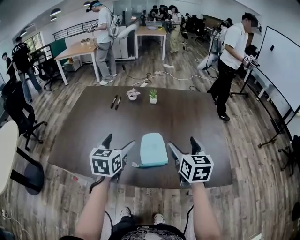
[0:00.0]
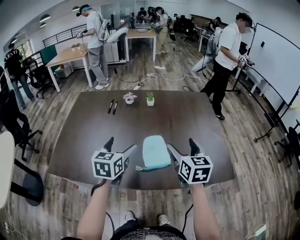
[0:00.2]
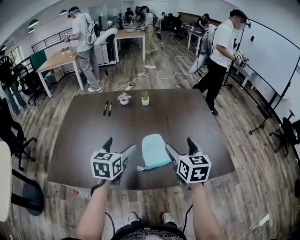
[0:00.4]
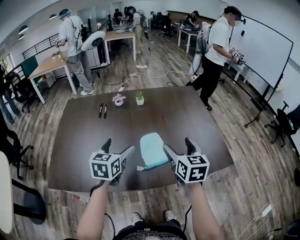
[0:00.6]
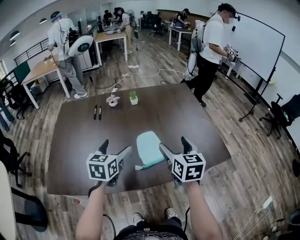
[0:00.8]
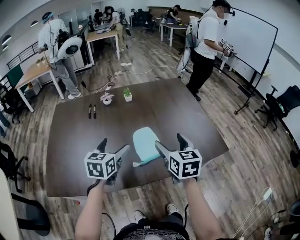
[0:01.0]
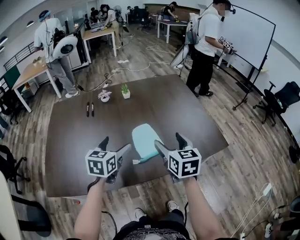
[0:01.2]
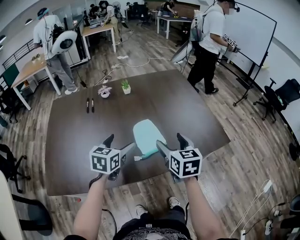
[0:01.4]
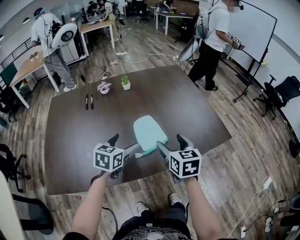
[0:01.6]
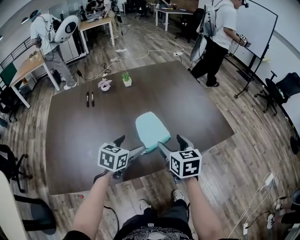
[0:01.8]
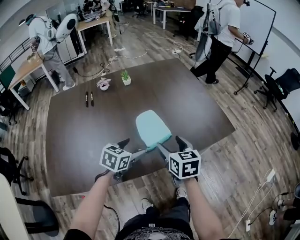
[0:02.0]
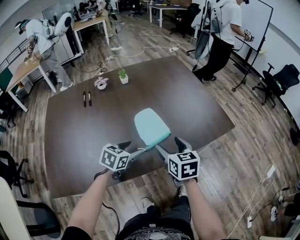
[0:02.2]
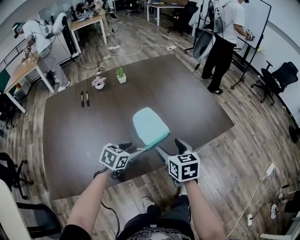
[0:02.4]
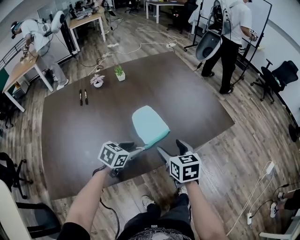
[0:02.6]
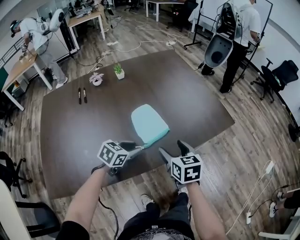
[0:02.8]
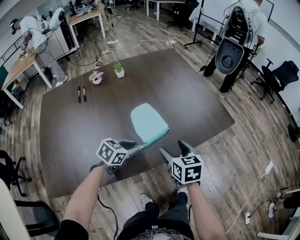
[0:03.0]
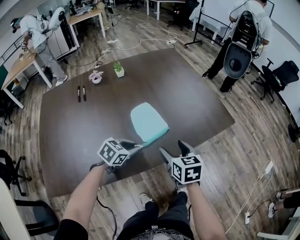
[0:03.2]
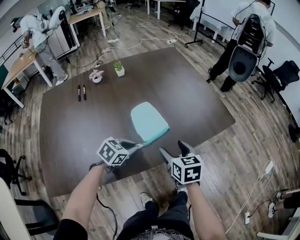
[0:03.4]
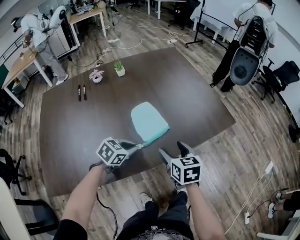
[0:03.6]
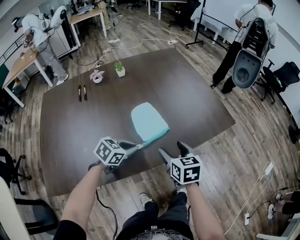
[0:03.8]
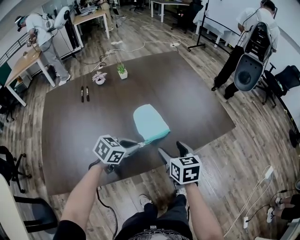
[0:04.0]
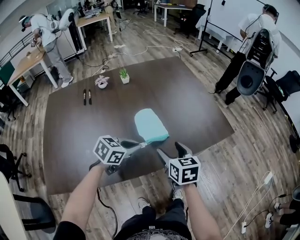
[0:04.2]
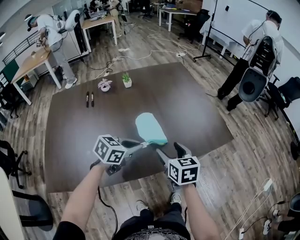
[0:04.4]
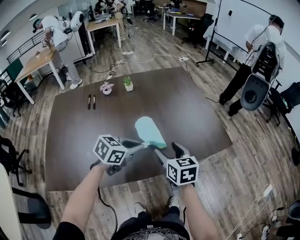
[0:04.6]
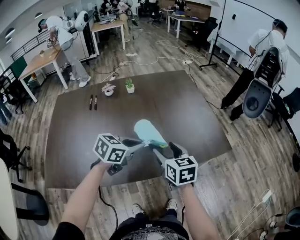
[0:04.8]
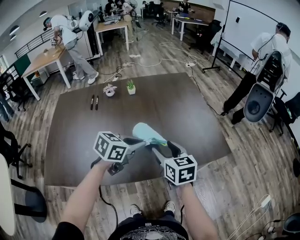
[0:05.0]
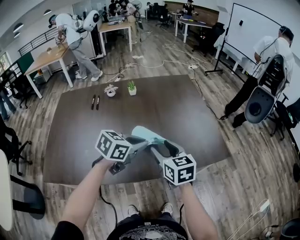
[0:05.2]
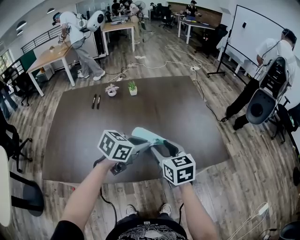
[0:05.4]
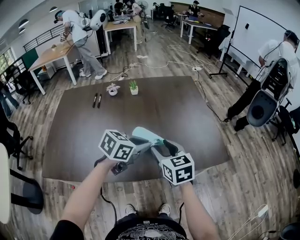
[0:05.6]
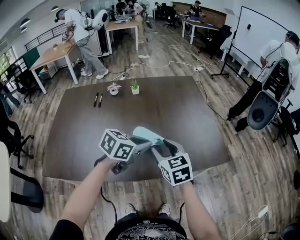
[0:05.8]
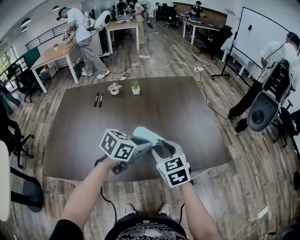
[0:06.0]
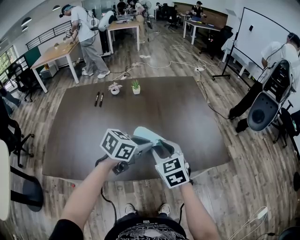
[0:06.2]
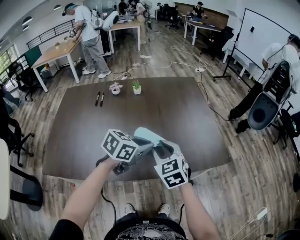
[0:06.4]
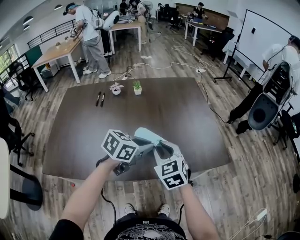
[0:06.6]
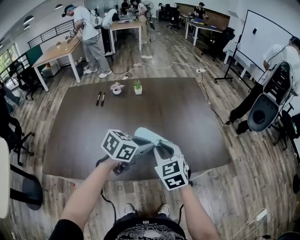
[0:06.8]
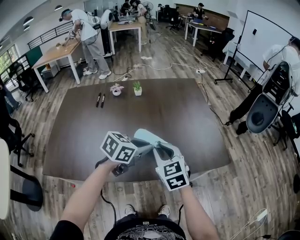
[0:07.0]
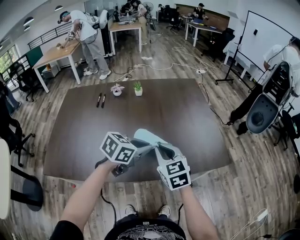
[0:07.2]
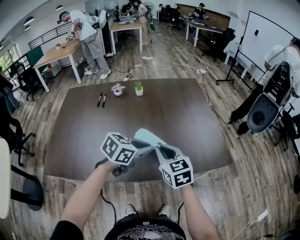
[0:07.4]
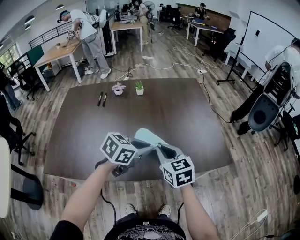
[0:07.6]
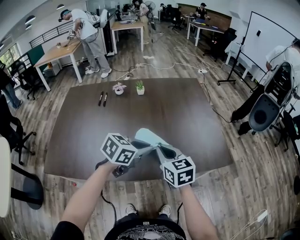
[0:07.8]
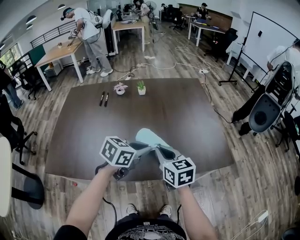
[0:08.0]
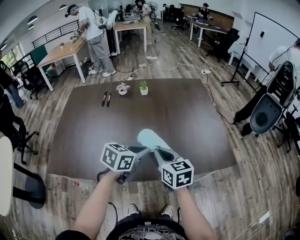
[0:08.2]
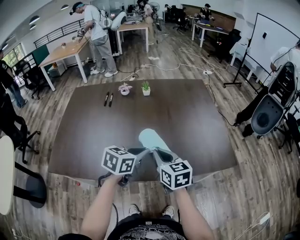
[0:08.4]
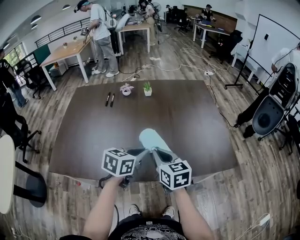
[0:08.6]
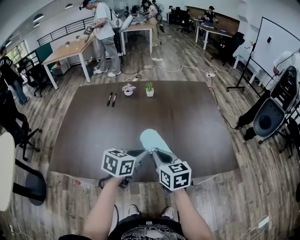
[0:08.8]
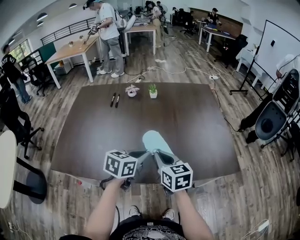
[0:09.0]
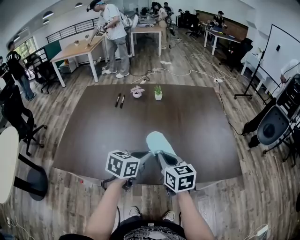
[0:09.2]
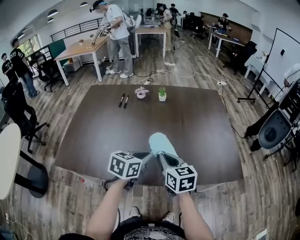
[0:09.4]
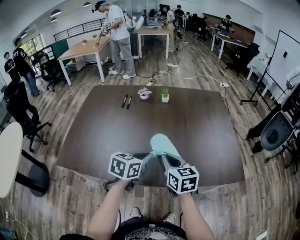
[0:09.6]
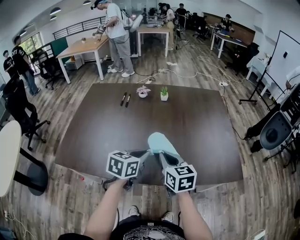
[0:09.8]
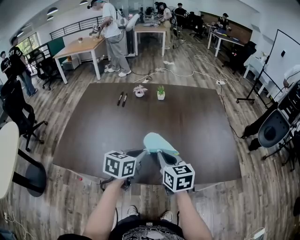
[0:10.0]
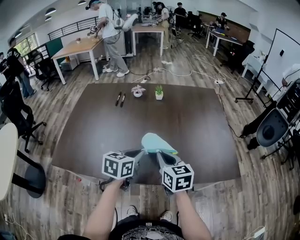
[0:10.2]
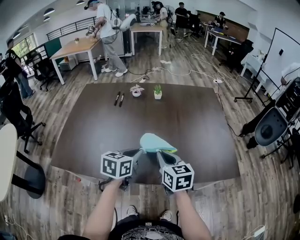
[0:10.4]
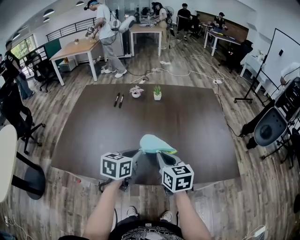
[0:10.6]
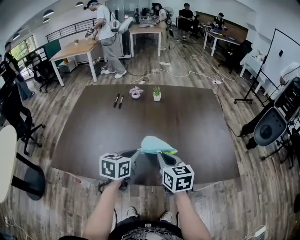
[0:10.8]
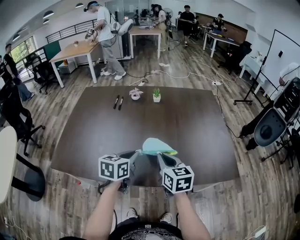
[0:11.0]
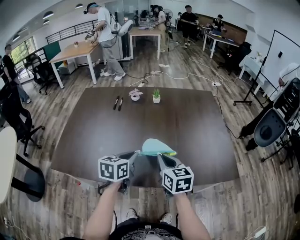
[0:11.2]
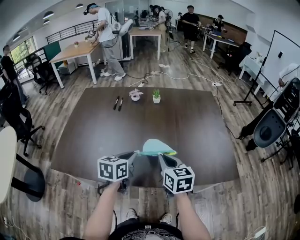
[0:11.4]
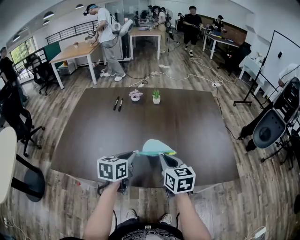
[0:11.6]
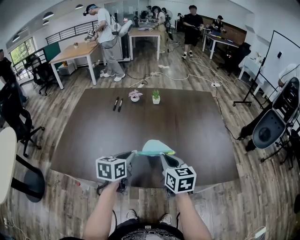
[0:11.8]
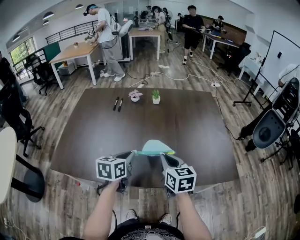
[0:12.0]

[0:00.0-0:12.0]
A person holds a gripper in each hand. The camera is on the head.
0:00.0 to 0:01.6: The right gripper changes place by about 10 cm, while the left gripper shifts some 10 cm downward, and rotates roughly 40 degrees.
0:01.6 to 0:03.0: Both grippers move downward, some 10 cm. The left gripper rotates about 30 degrees, and closes its fingers.
0:03.0 to 0:04.4: The right gripper changes place by roughly 5 cm, while the left gripper travels upward by about 10 cm.
0:04.4 to 0:06.0: The right gripper moves about 5 cm, and rotates some 30 degrees; the left gripper goes some 10 cm upward and to the right.
0:06.0 to 0:07.6: The right gripper closes its fingers.
0:07.6 to 0:09.0: The right gripper moves approximately 5 cm. Meanwhile the left gripper heads to the left, covering some 5 cm, and rotates about 20 degrees.
0:09.0 to 0:10.4: There are only small adjustments of the grippers.
0:10.4 to 0:12.0: The grippers move only a little.

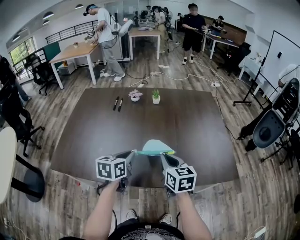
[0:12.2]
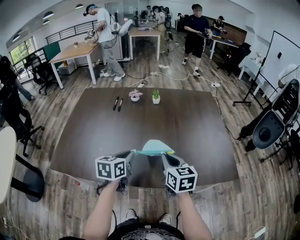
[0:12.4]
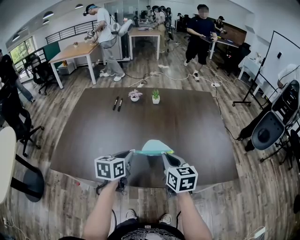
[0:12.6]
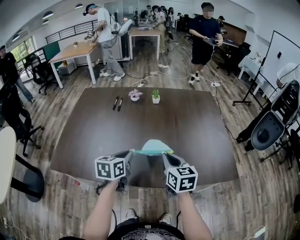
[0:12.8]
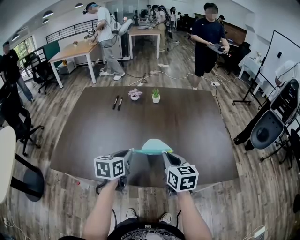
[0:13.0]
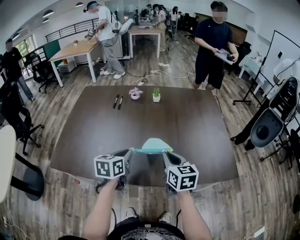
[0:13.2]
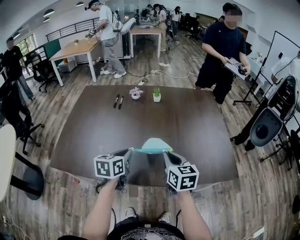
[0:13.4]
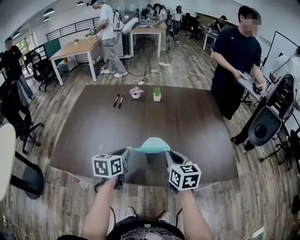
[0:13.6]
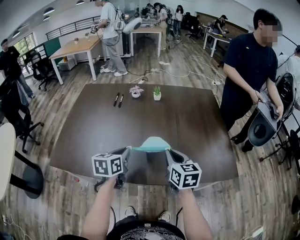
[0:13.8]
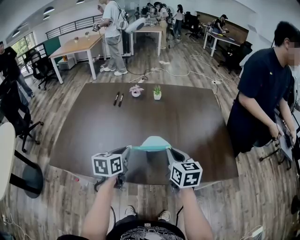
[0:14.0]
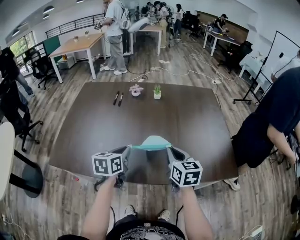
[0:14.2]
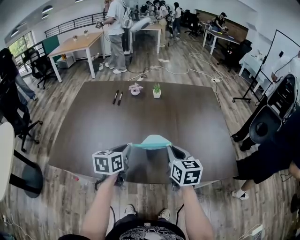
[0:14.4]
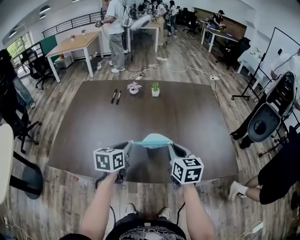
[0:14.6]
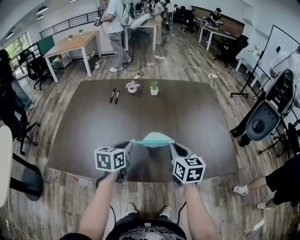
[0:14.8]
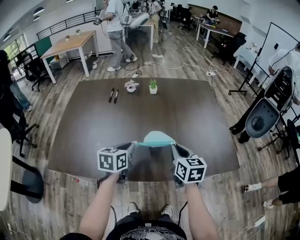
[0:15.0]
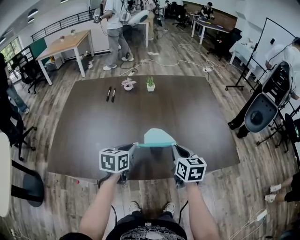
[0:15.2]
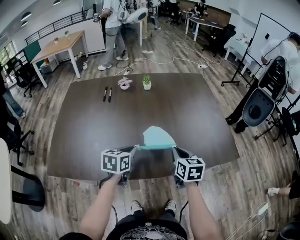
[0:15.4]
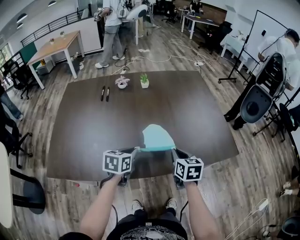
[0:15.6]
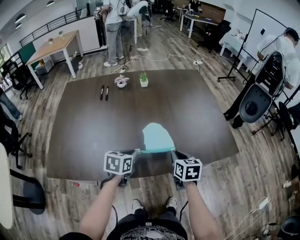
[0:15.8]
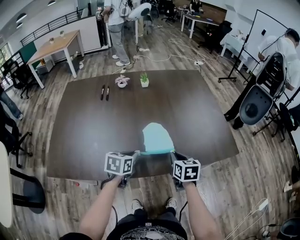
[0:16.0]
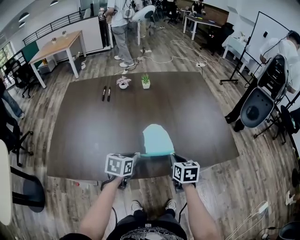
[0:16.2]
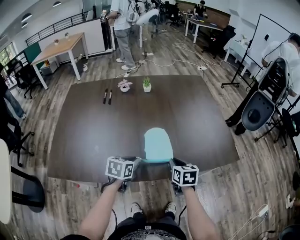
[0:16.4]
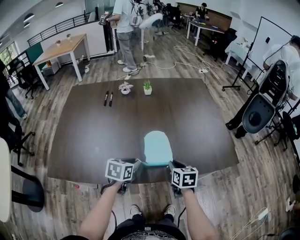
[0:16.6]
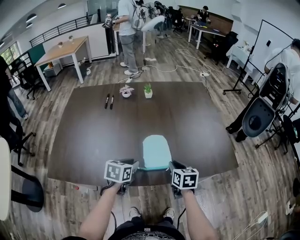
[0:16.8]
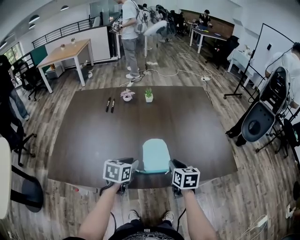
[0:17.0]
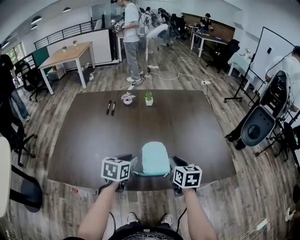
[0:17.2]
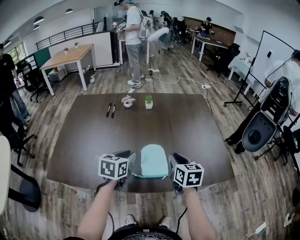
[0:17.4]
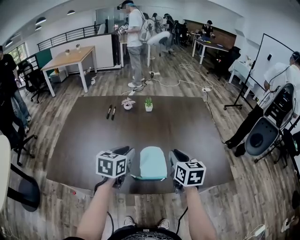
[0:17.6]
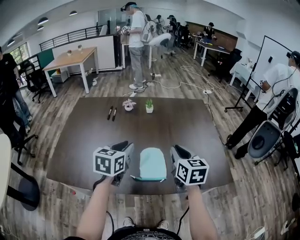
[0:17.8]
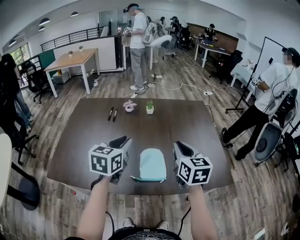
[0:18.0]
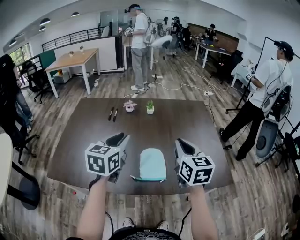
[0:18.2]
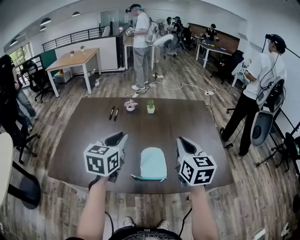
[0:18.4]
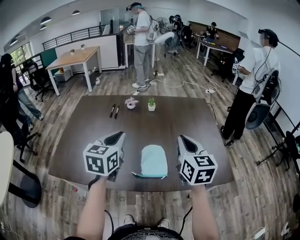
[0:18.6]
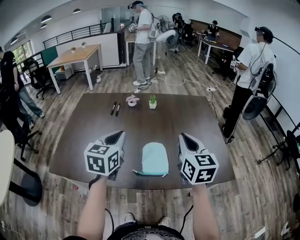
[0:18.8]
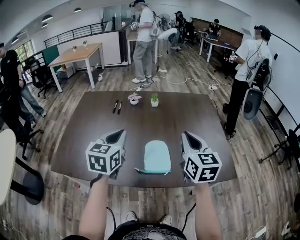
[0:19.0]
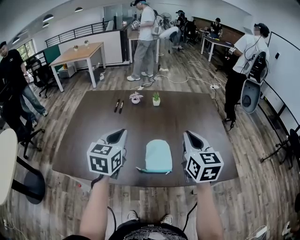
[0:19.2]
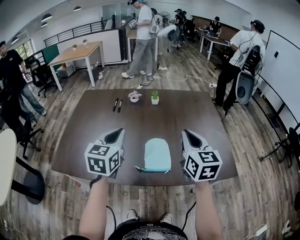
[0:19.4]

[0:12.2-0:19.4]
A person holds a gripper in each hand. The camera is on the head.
0:12.2 to 0:15.0: There are only small adjustments of the grippers.
0:15.0 to 0:16.6: The grippers both shift downward by some 10 cm.
0:16.6 to 0:18.0: The two grippers go about 25 cm upward. The left gripper rotates about 30 degrees, while the right gripper turns by some 30 degrees.
0:18.0 to 0:19.4: The grippers move only a little.

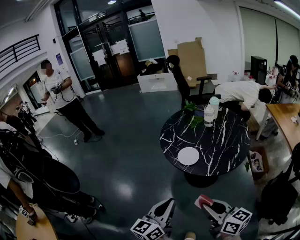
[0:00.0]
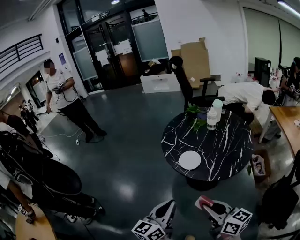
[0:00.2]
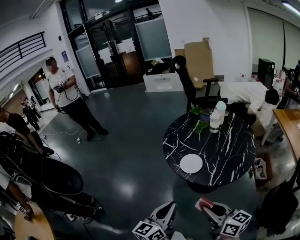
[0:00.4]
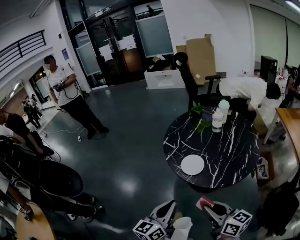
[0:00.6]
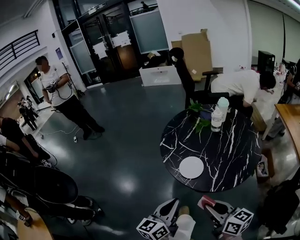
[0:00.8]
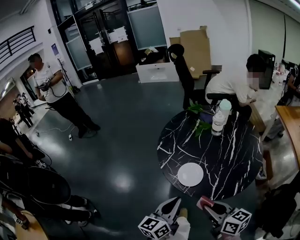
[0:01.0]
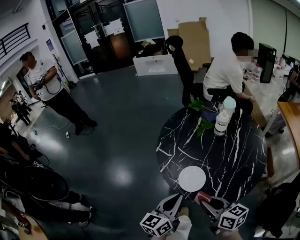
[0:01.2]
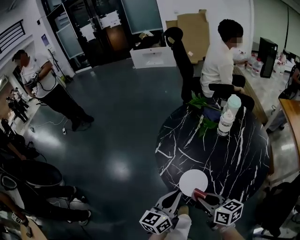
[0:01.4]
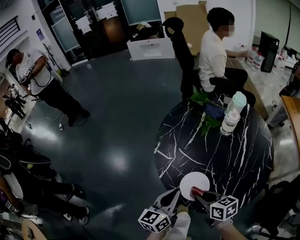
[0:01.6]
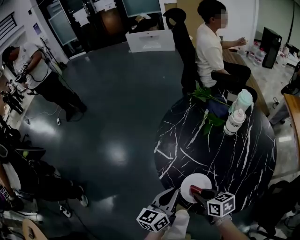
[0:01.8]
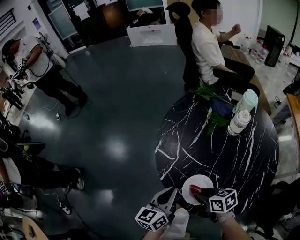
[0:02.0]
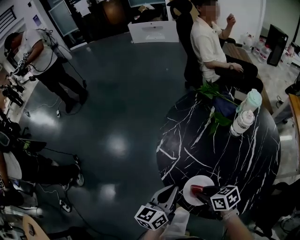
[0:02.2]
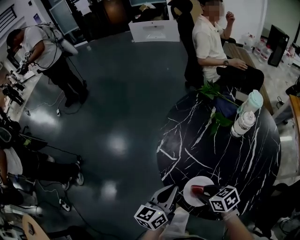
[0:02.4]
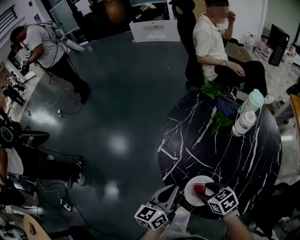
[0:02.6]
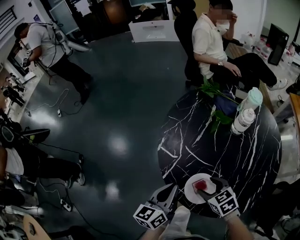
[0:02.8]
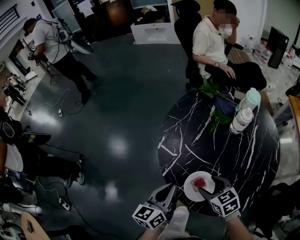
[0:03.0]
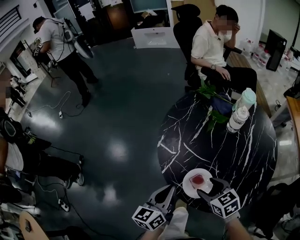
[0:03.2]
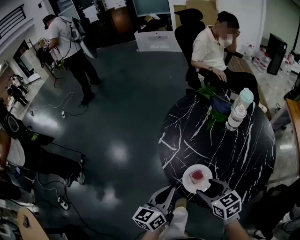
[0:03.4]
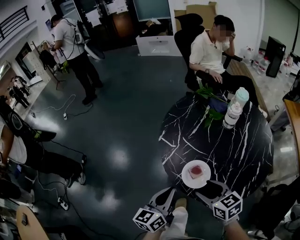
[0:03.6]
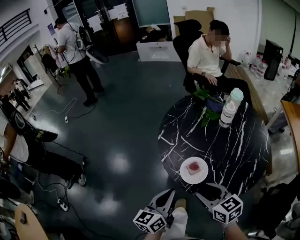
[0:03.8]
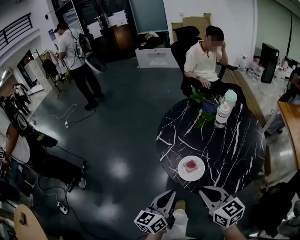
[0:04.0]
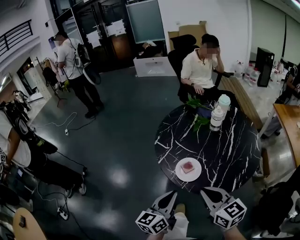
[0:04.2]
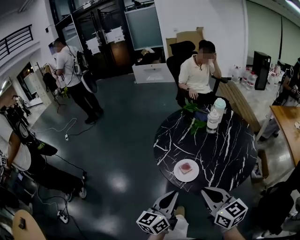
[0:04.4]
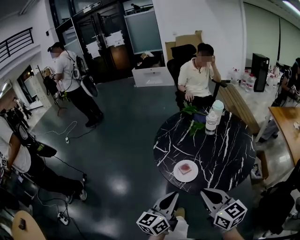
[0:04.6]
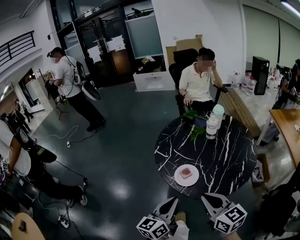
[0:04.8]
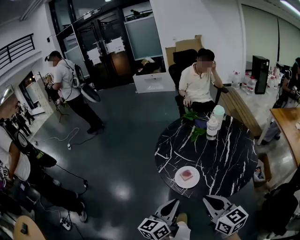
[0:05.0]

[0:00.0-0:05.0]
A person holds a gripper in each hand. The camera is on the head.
0:00.0 to 0:01.6: The right gripper shifts approximately 40 cm forward and downward, and changes its angle by approximately 30 degrees. The left gripper travels forward by approximately 35 cm.
0:01.6 to 0:03.4: The right gripper goes downward and returns, some 5 cm each way, swivels some 20 degrees, and opens. The left gripper reaches about 5 cm forward, then returns.
0:03.4 to 0:05.0: Both grippers move backward and upward, about 20 cm. The right gripper turns by roughly 30 degrees, and closes its fingers.
